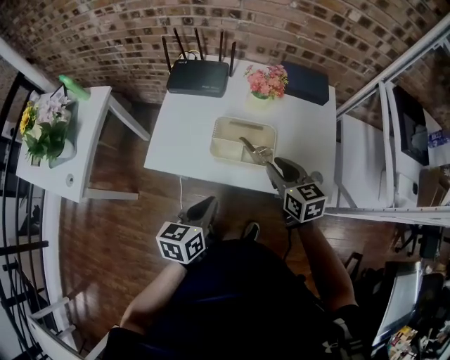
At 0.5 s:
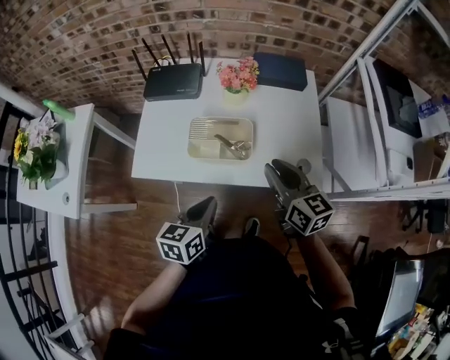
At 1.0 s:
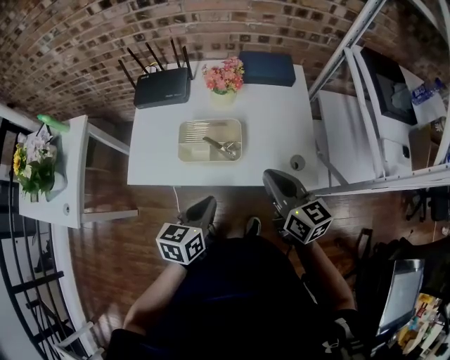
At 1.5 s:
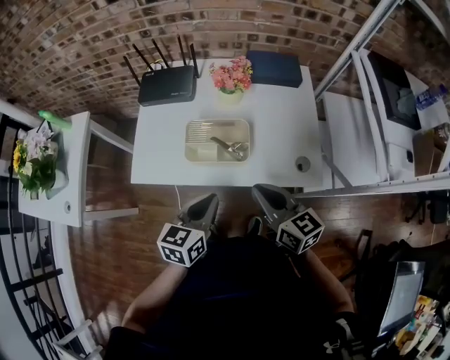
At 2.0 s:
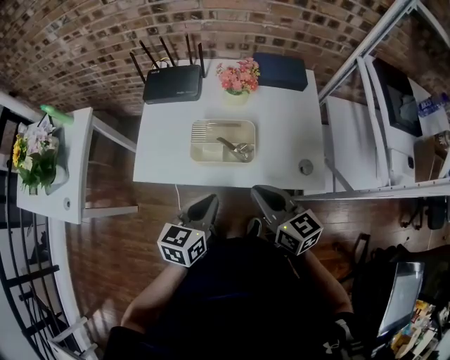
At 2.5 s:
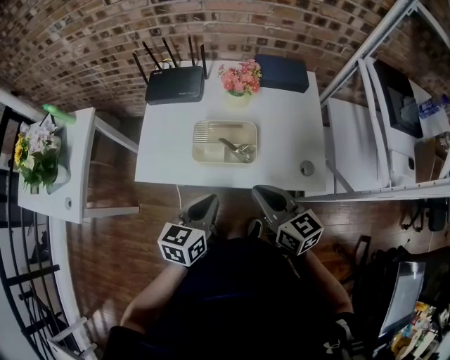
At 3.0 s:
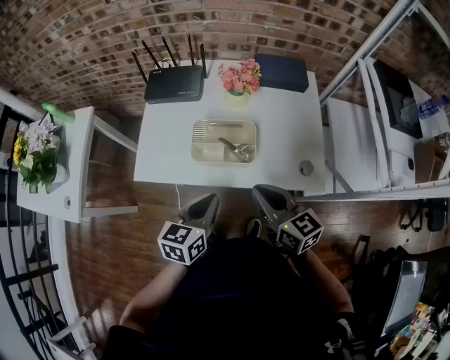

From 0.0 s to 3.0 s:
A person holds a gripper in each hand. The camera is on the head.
From 0.0 s to 1.5 s: The left gripper shifts roughly 5 cm to the right. The right gripper goes some 10 cm backward, and closes its fingers.
From 1.5 s to 3.0 s: The grippers stay close to where they were, moving slightly.

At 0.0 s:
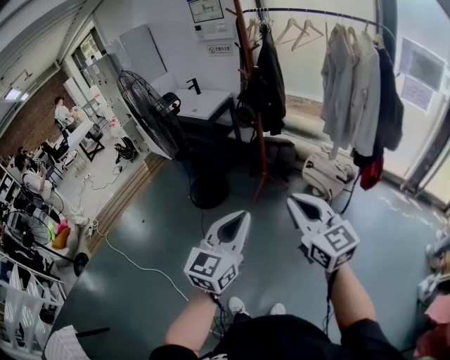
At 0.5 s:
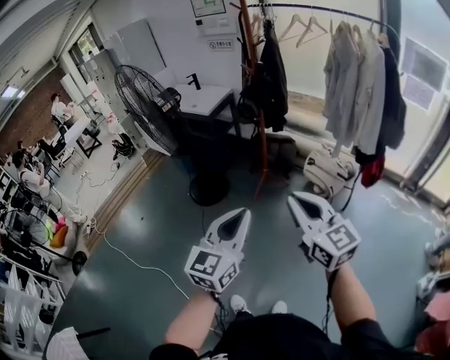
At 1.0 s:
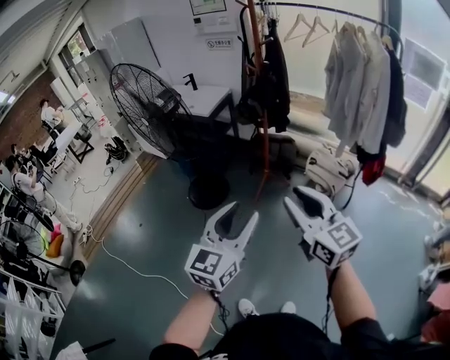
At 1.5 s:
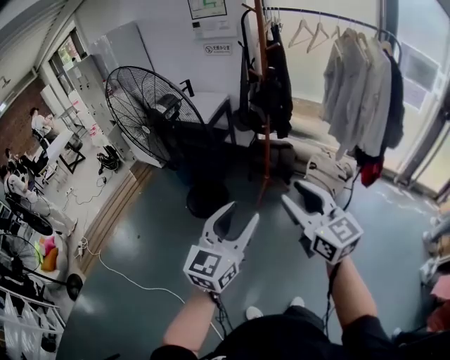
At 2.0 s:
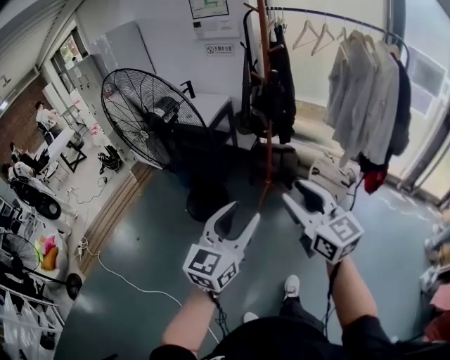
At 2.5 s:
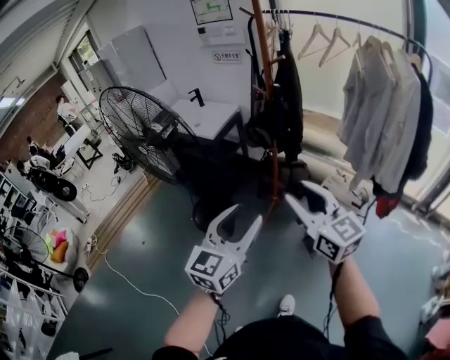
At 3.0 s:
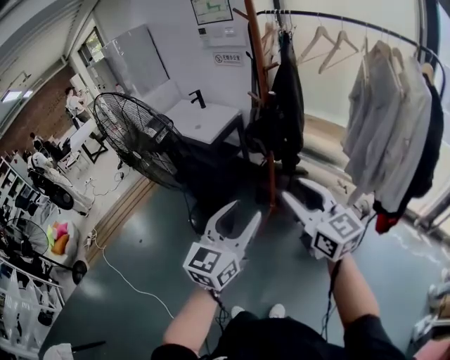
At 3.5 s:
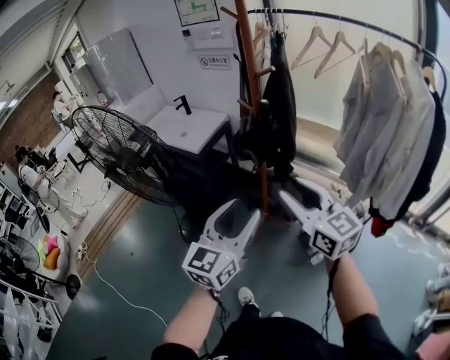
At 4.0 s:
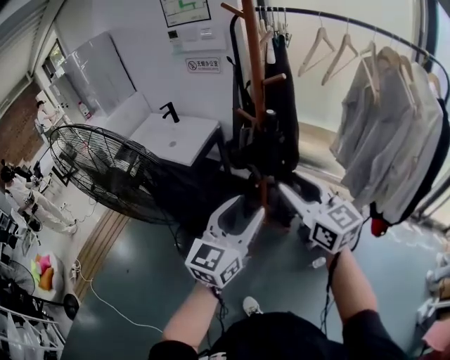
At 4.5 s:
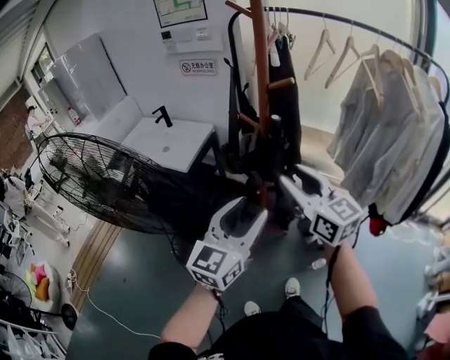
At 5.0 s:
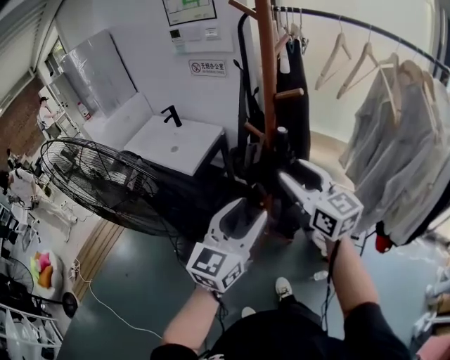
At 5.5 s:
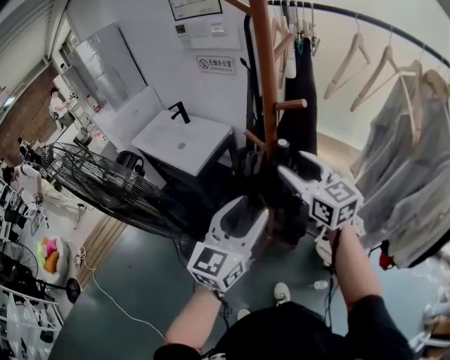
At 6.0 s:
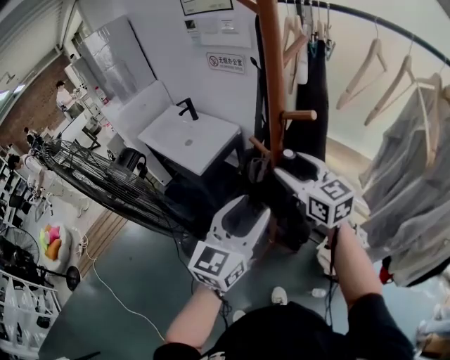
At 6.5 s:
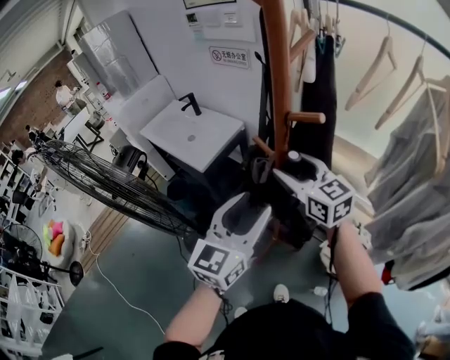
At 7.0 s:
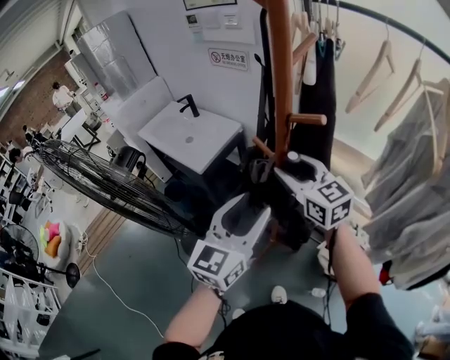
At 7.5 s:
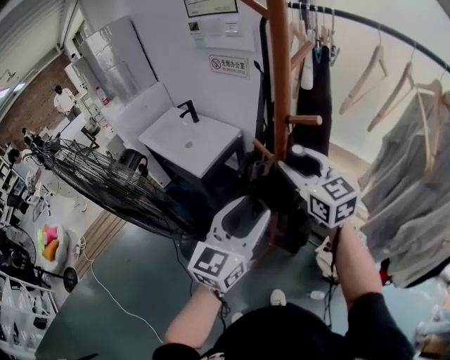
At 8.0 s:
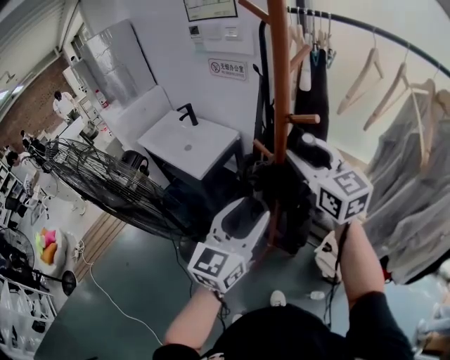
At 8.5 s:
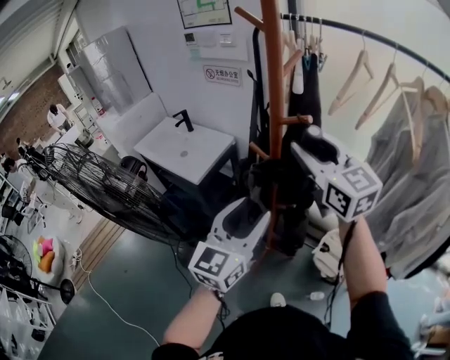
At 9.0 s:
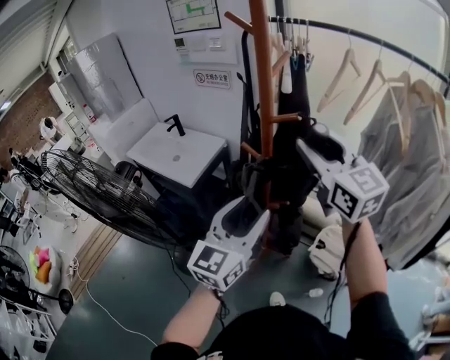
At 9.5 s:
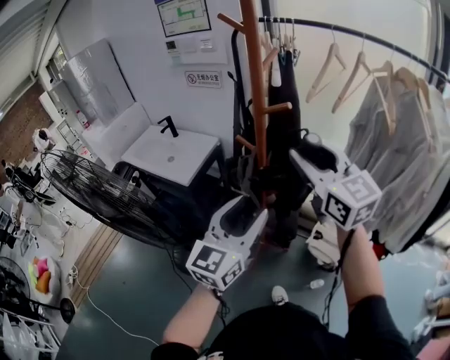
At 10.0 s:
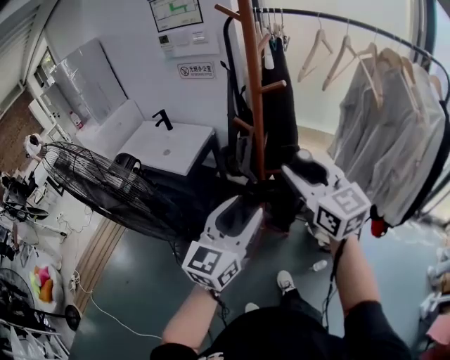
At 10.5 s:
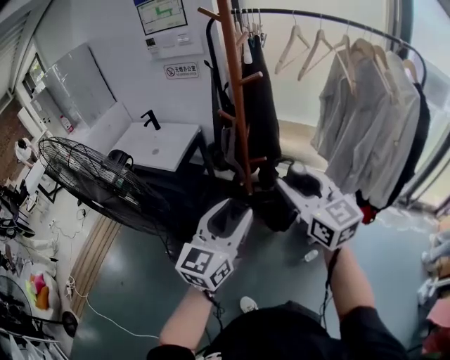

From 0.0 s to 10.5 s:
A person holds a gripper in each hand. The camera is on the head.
From 0.0 s to 2.0 s: Both grippers travel together to the left and forward, some 20 cm. The right gripper opens, while the left gripper opens up.
From 2.0 s to 4.0 s: The two grippers travel together, forward, some 40 cm.
From 4.0 s to 6.5 s: Both grippers move forward, about 25 cm.
From 6.5 s to 8.5 s: The right gripper heads upward, covering roughly 15 cm. Meanwhile the left gripper ends up about 5 cm from where it was.
From 8.5 s to 10.5 s: Both grippers travel together backward, approximately 25 cm.

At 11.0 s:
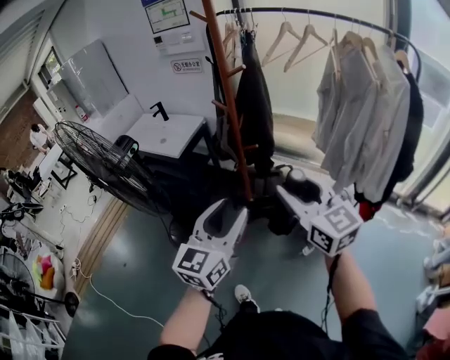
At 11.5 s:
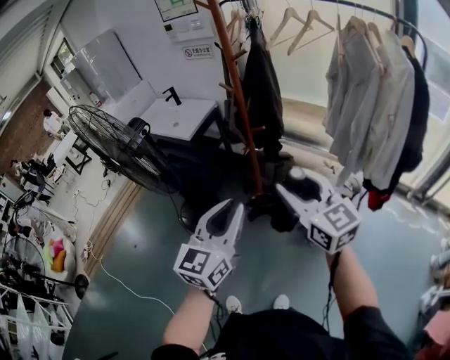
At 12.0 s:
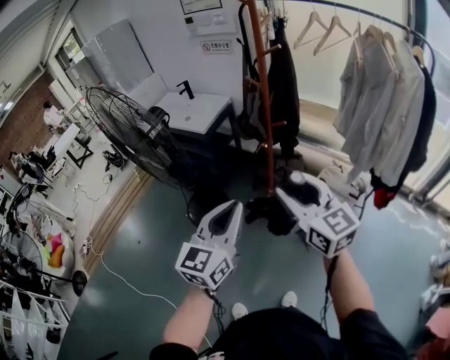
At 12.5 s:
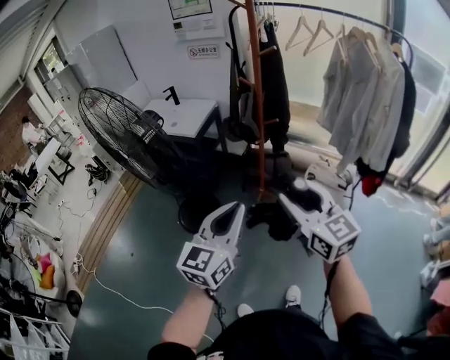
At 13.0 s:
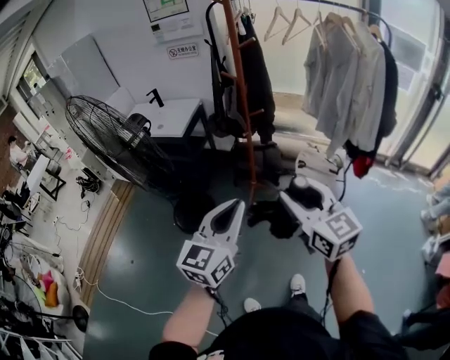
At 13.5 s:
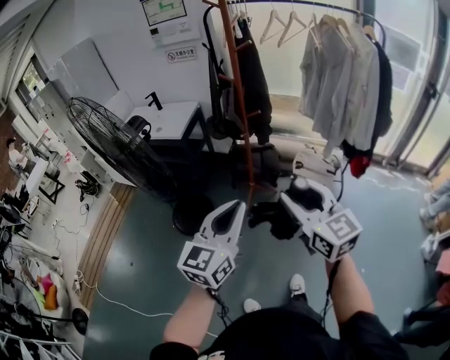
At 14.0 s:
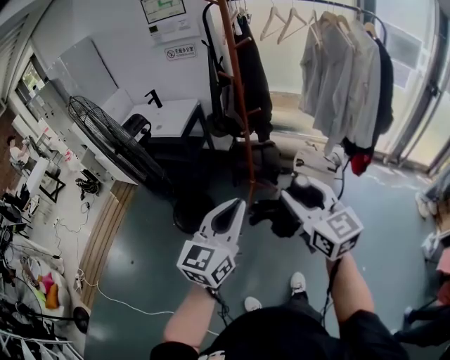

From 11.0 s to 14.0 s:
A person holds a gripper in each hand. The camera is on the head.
From 11.0 s to 12.5 s: The two grippers go some 20 cm to the left and backward. The left gripper closes up.
From 12.5 s to 14.0 s: The grippers stay close to where they were, moving slightly.

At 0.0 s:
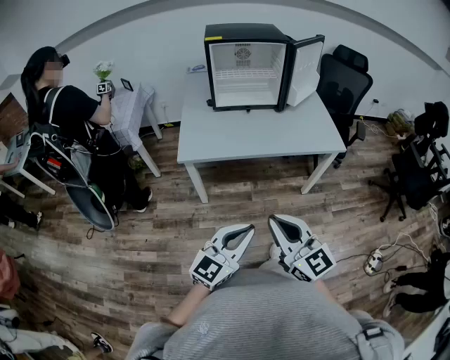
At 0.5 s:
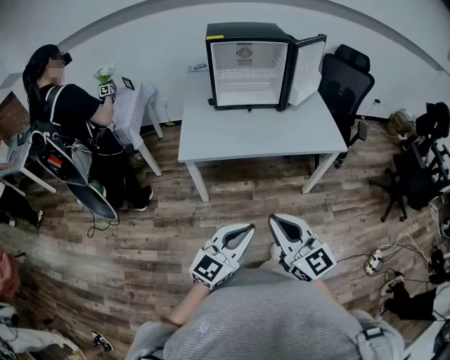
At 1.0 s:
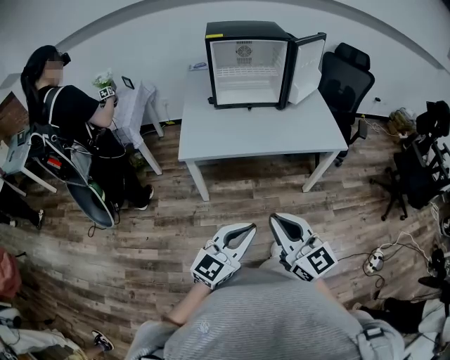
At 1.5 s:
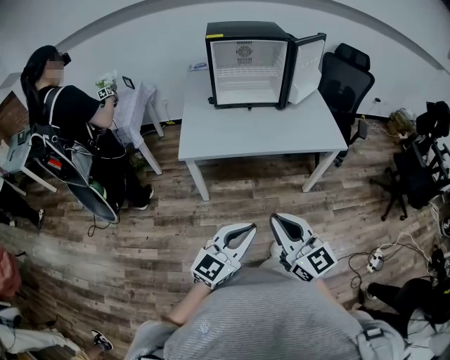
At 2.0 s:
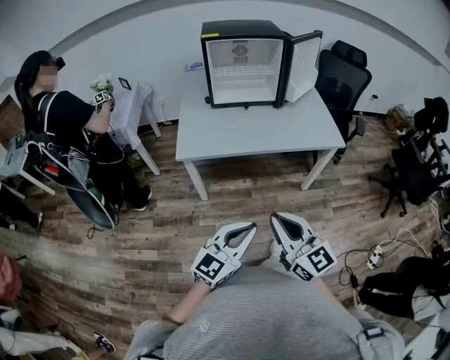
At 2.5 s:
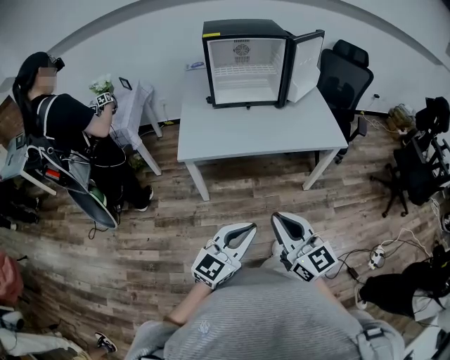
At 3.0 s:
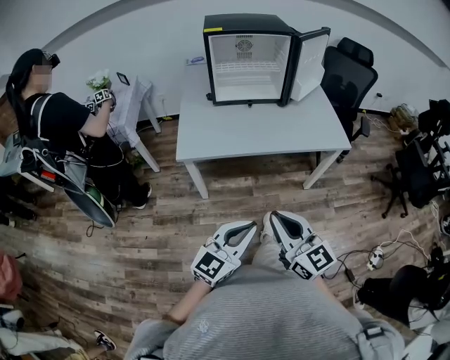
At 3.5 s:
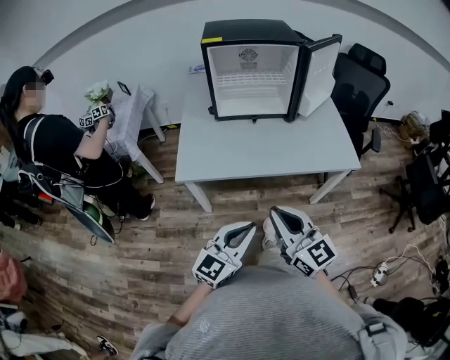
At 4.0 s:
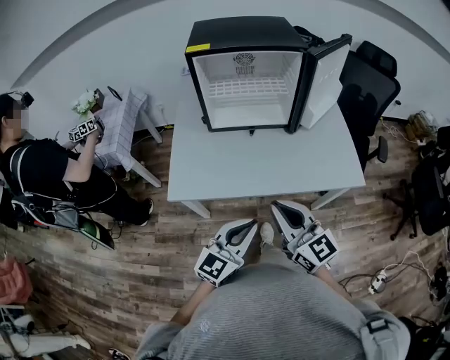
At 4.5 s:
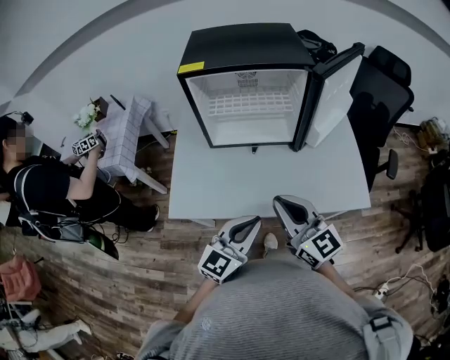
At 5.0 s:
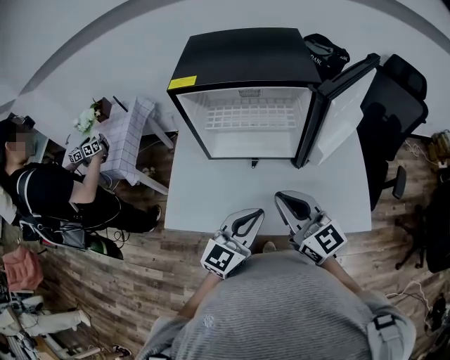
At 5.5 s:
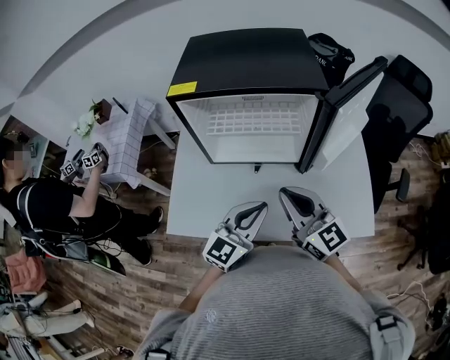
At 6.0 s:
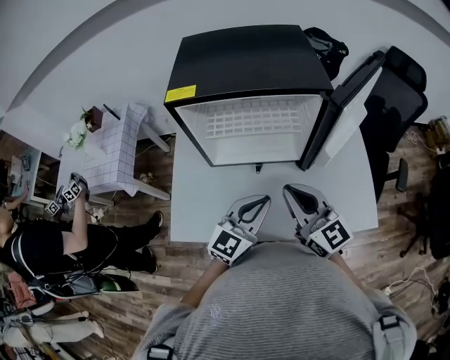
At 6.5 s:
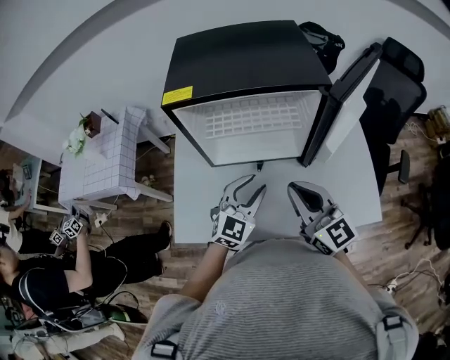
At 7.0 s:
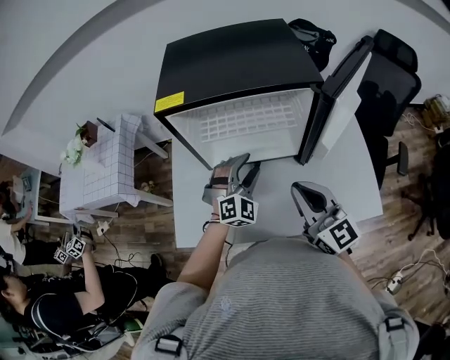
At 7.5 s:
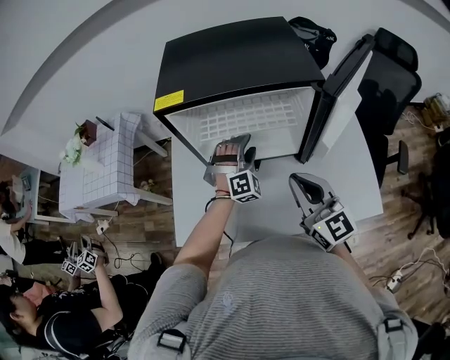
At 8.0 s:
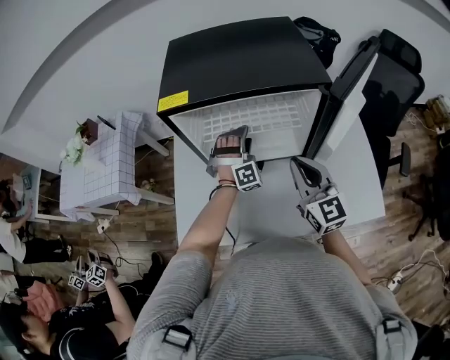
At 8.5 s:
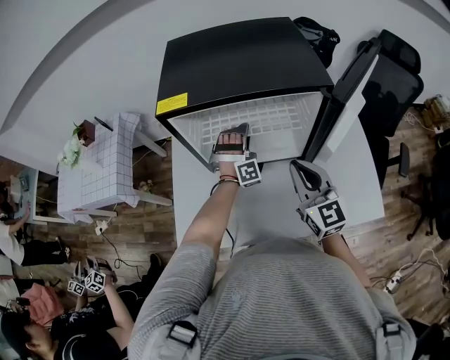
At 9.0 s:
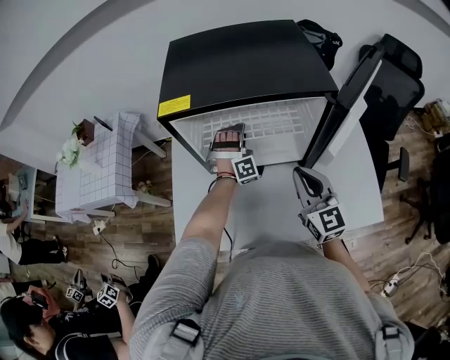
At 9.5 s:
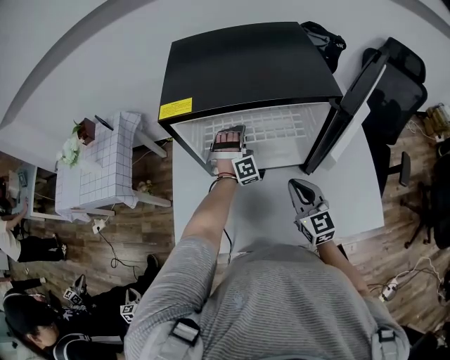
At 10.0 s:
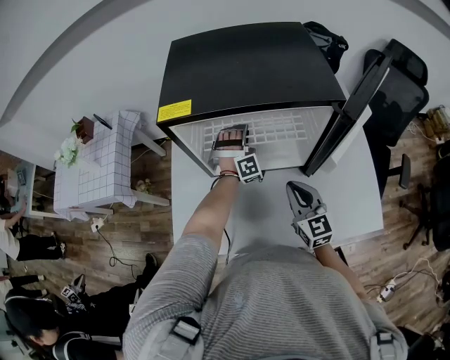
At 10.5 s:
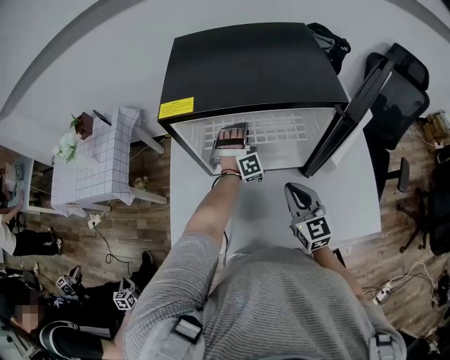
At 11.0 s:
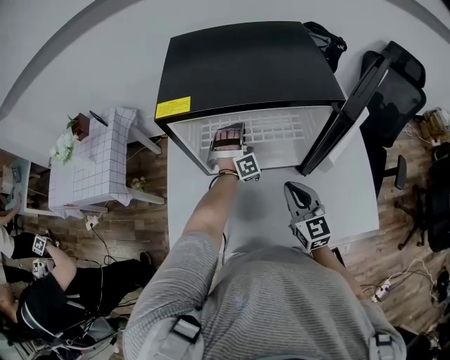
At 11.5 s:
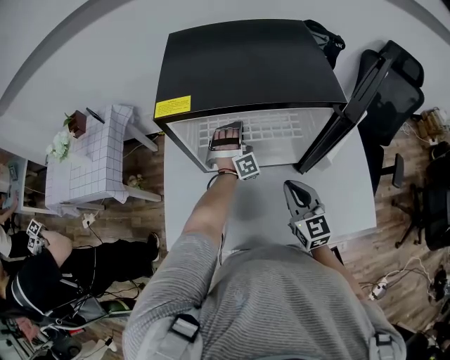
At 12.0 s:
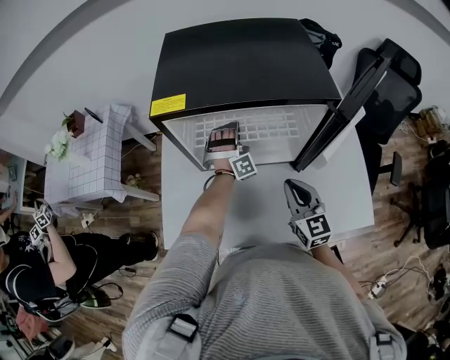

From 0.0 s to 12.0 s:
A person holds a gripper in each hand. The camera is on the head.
From 0.0 s to 2.0 s: The grippers stay close to where they were, moving slightly.
From 2.0 s to 4.0 s: Both grippers travel together forward, about 30 cm.
From 4.0 s to 6.0 s: The grippers both shift forward by about 30 cm.
From 6.0 s to 8.0 s: The left gripper moves forward, some 25 cm, twists some 70 degrees clockwise, seen from behind, and opens its fingers. The right gripper goes about 5 cm forward.
From 8.0 s to 10.0 s: The right gripper goes roughly 10 cm downward; the left gripper heads forward, covering some 10 cm, and closes up.
From 10.0 s to 12.0 s: The grippers move only a little.
